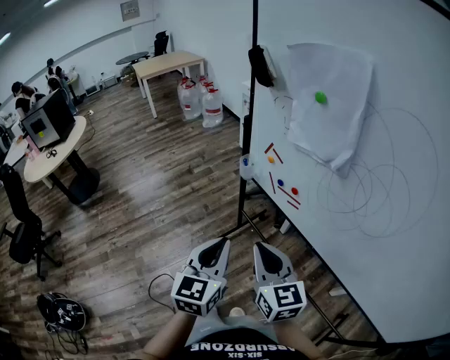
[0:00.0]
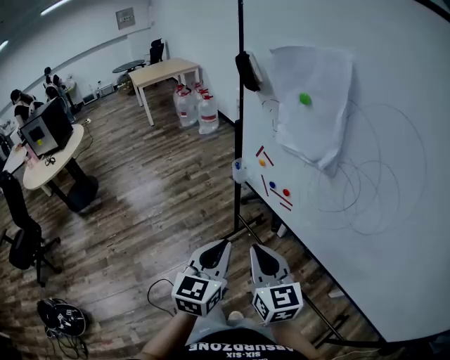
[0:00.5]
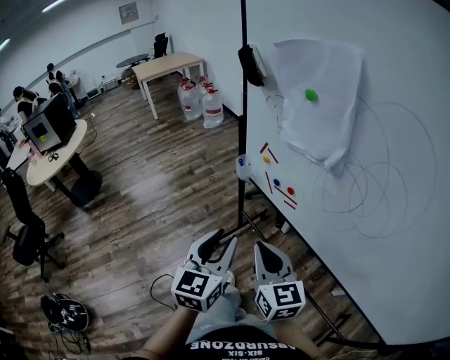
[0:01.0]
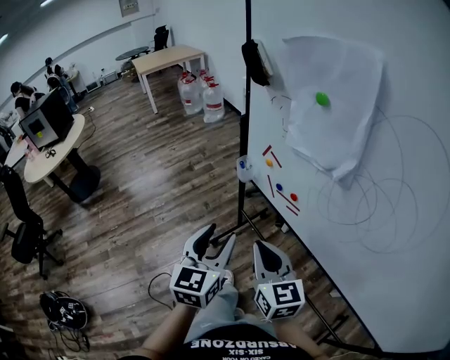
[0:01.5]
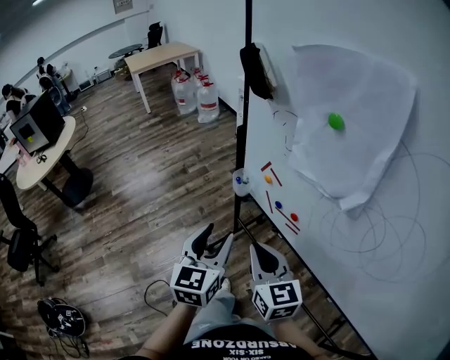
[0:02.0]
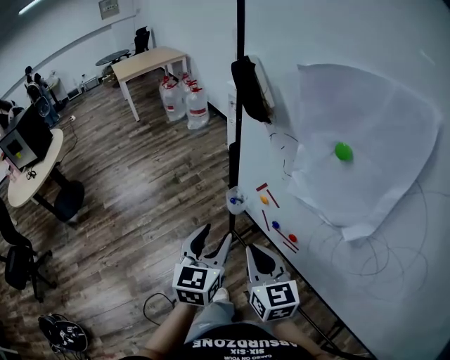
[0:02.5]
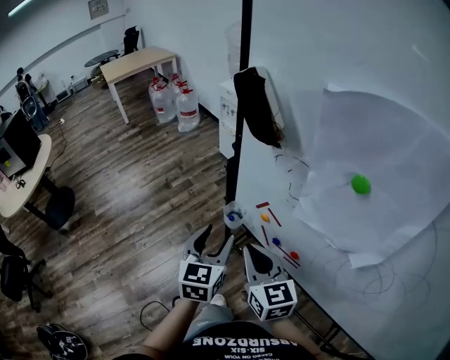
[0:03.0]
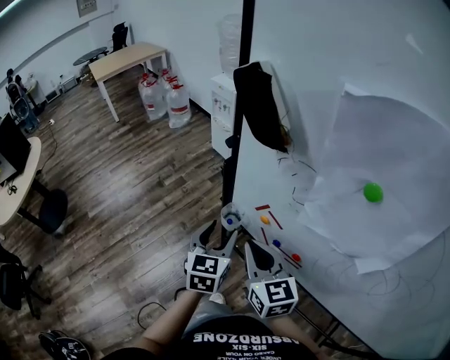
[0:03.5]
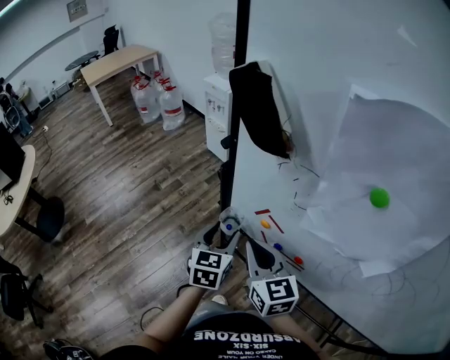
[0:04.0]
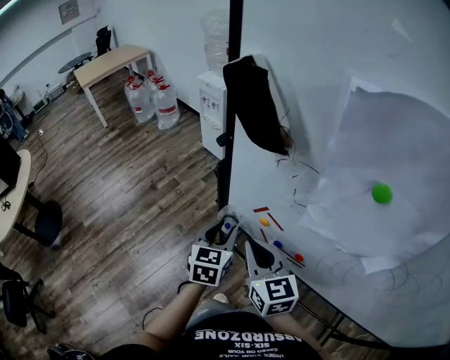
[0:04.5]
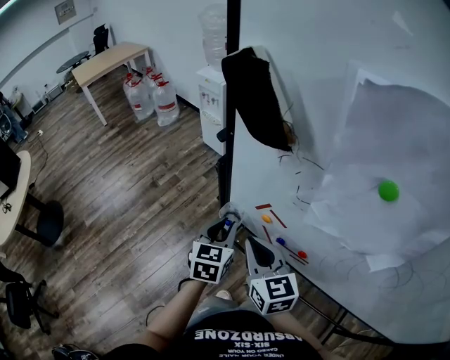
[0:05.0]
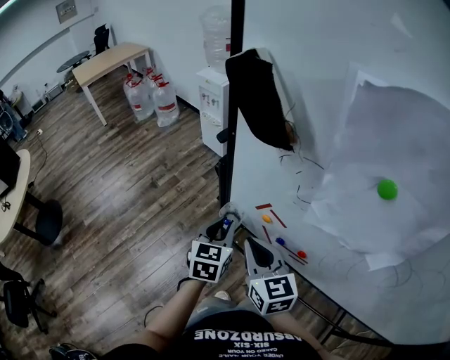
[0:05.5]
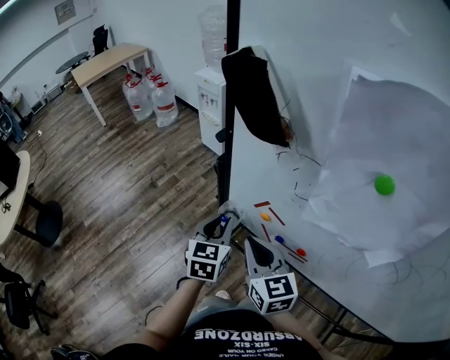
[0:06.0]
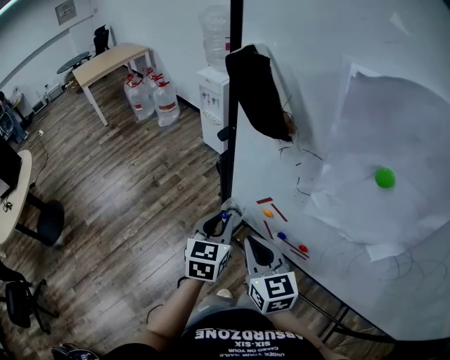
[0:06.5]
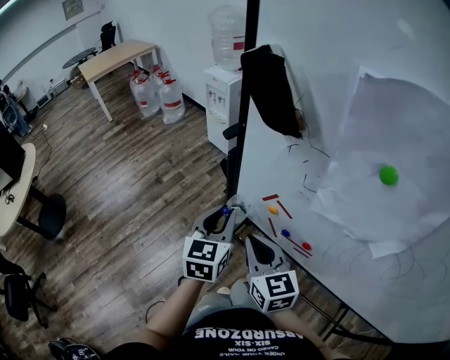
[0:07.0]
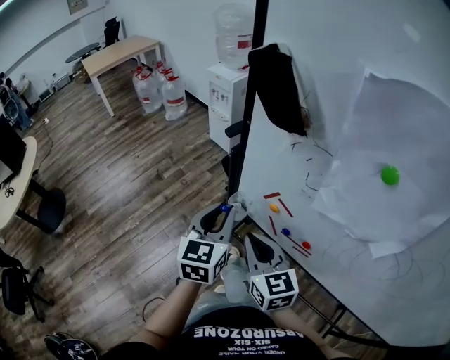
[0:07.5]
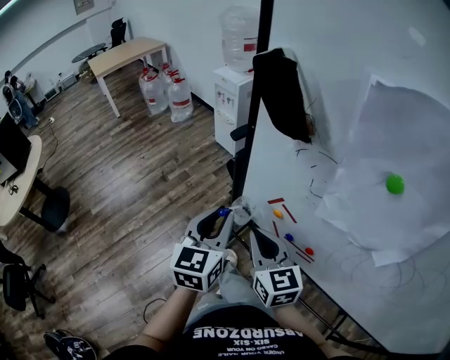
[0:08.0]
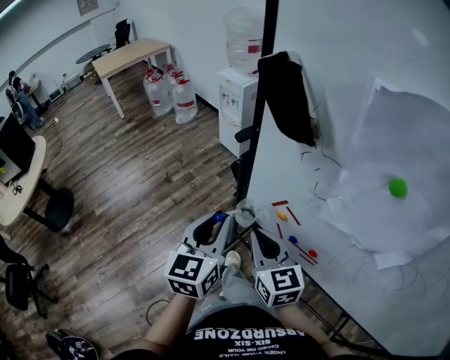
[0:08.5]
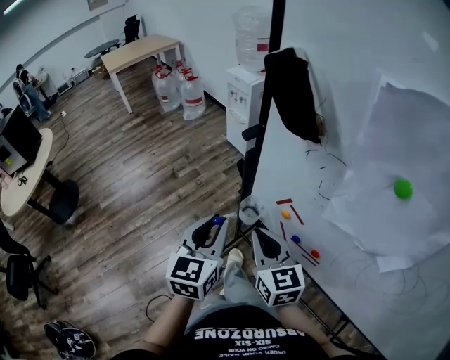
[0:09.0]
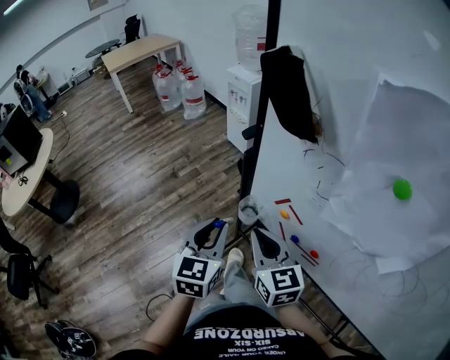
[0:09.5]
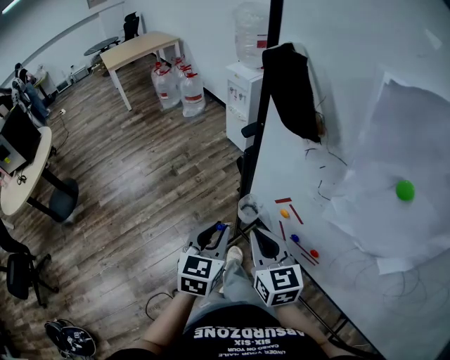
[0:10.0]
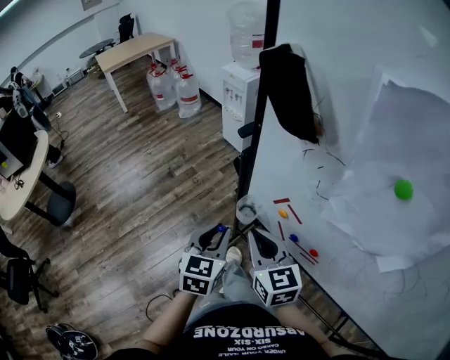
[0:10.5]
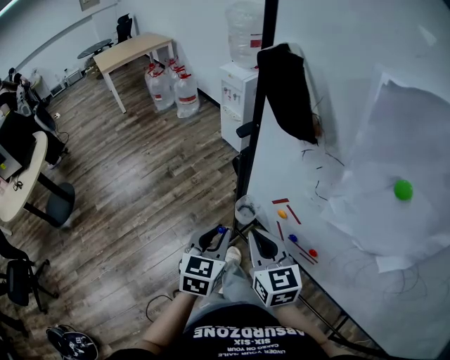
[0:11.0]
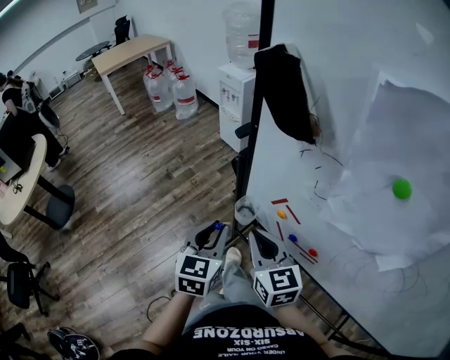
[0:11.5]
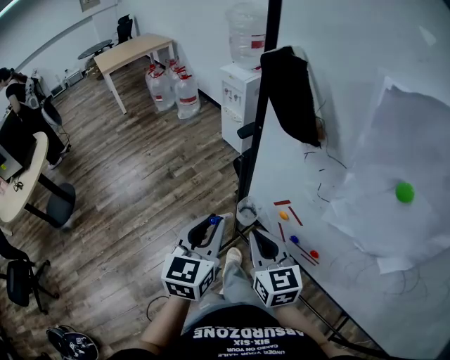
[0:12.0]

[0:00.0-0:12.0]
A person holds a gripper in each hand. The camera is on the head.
0.0 to 2.0 s: Both grippers travel together forward, about 15 cm. The left gripper opens.
2.0 to 4.0 s: The right gripper travels forward by approximately 20 cm, while the left gripper heads forward and downward, covering about 25 cm.
4.0 to 6.0 s: The left gripper closes up.
6.0 to 8.0 s: The left gripper moves upward, approximately 10 cm.
8.0 to 10.0 s: The left gripper shifts approximately 5 cm downward.
10.0 to 12.0 s: The left gripper is displaced upward by some 5 cm.

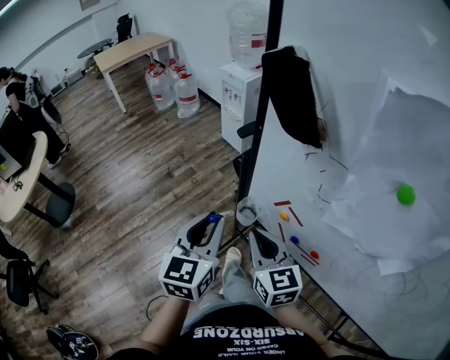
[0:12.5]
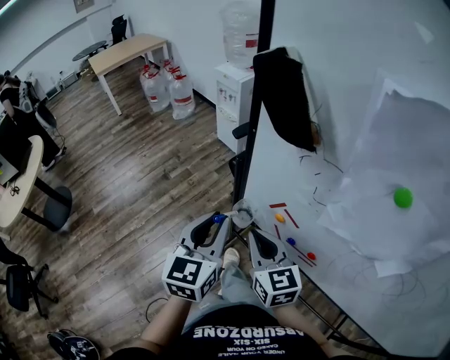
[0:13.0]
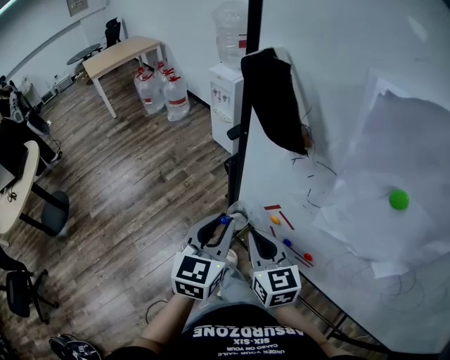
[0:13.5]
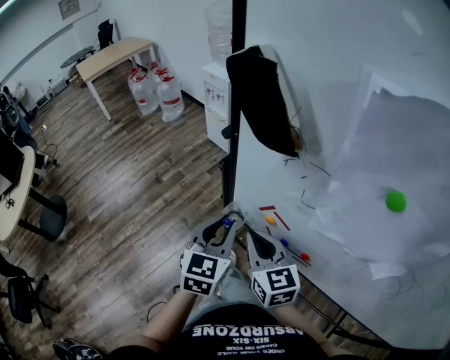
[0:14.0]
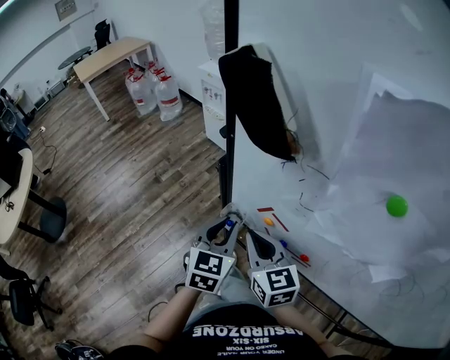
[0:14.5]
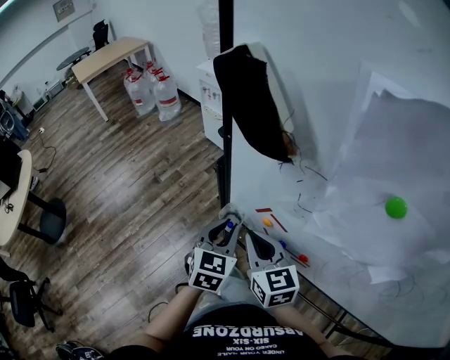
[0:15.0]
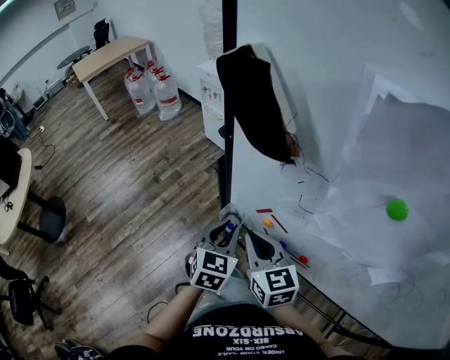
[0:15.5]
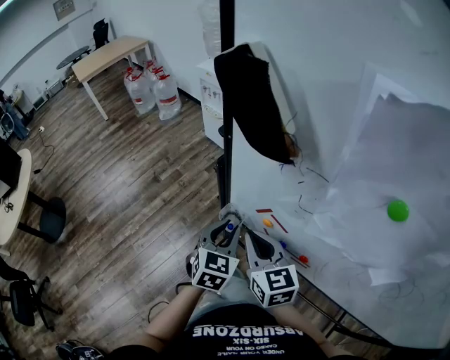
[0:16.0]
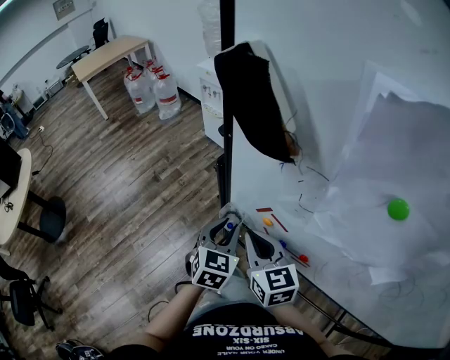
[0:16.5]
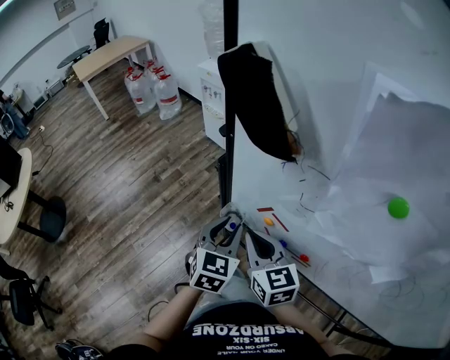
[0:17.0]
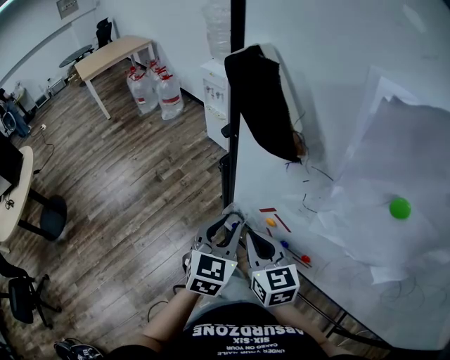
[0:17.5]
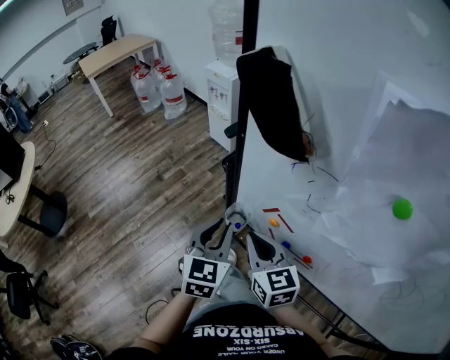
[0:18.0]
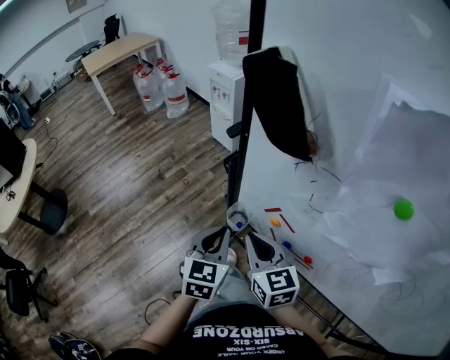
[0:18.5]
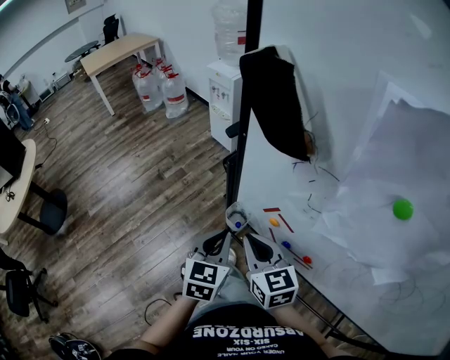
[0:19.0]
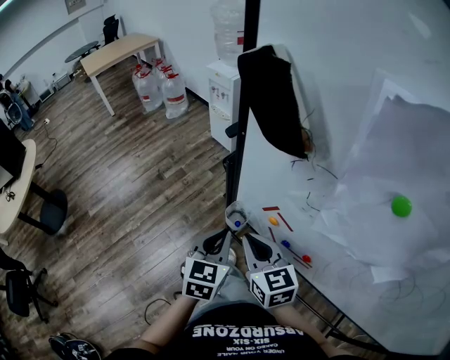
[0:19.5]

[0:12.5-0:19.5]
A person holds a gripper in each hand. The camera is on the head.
12.5 to 14.5 s: The left gripper shifts approximately 10 cm to the right and downward.
14.5 to 16.0 s: The grippers move only a little.
16.0 to 17.5 s: The left gripper is displaced upward by some 5 cm.
17.5 to 19.5 s: The left gripper closes.

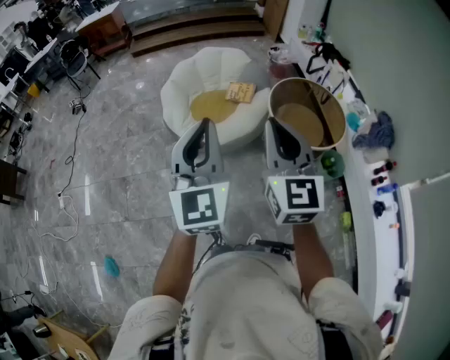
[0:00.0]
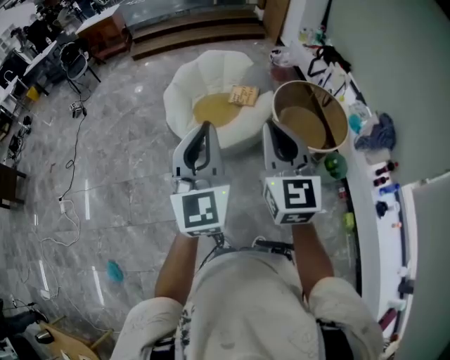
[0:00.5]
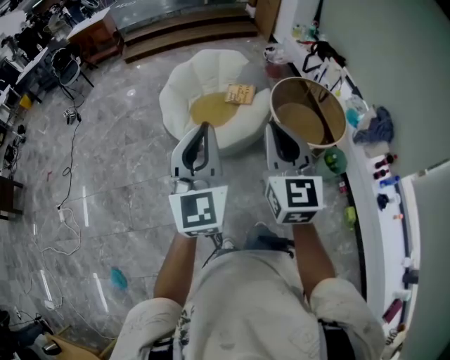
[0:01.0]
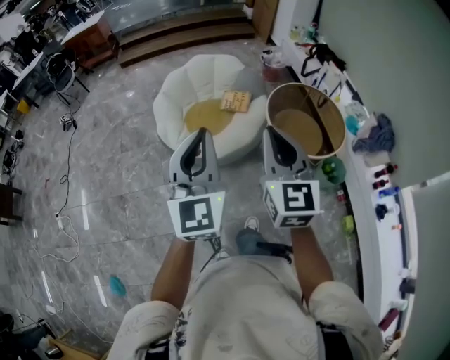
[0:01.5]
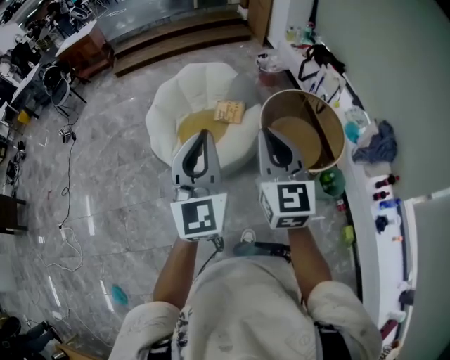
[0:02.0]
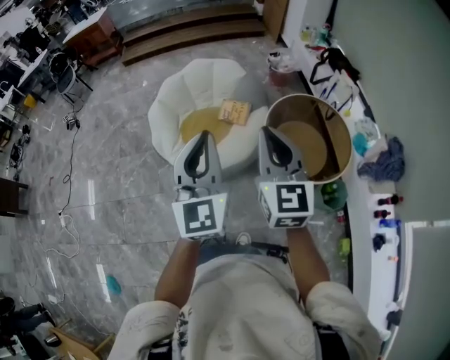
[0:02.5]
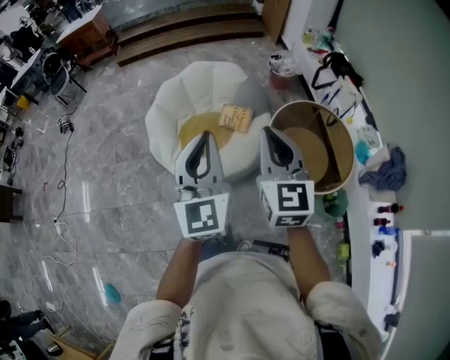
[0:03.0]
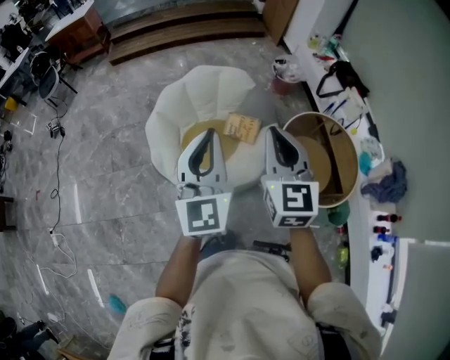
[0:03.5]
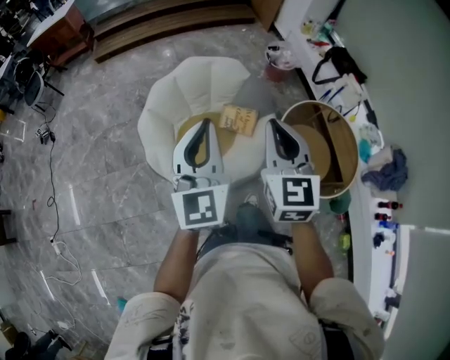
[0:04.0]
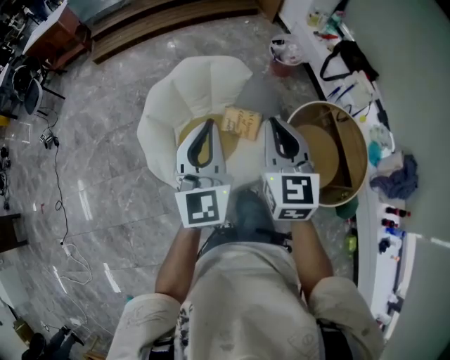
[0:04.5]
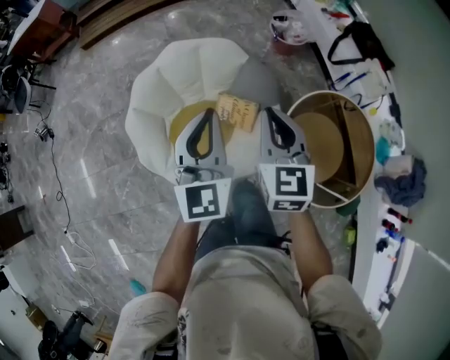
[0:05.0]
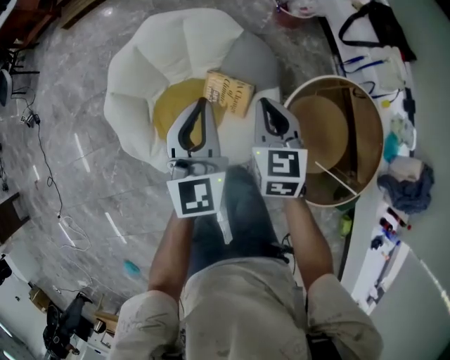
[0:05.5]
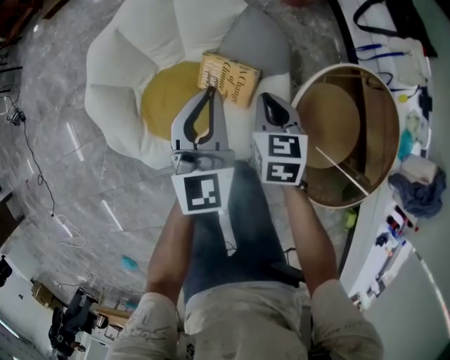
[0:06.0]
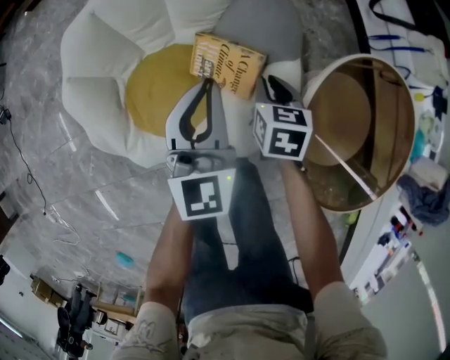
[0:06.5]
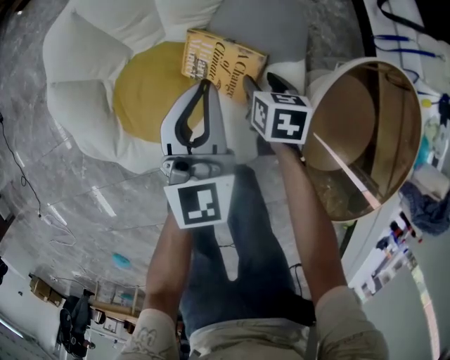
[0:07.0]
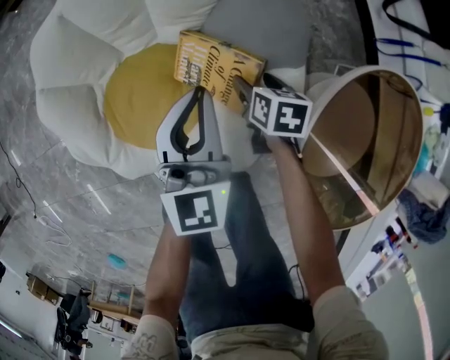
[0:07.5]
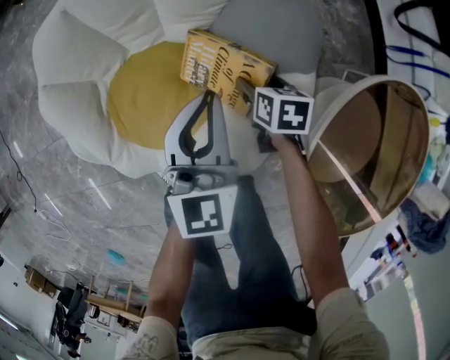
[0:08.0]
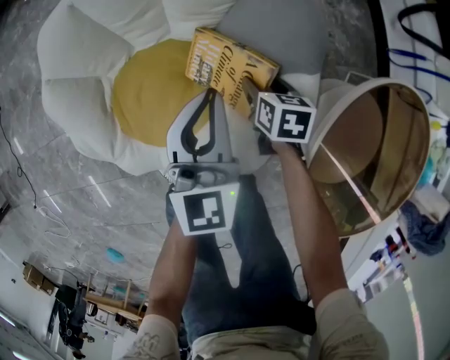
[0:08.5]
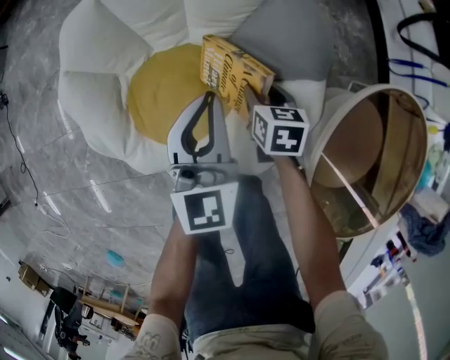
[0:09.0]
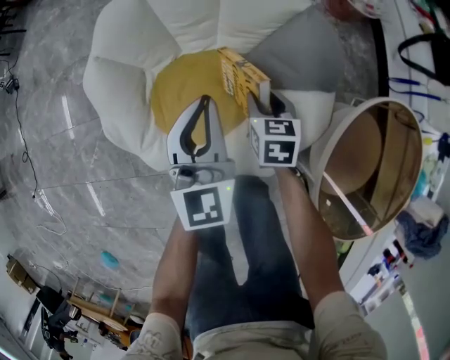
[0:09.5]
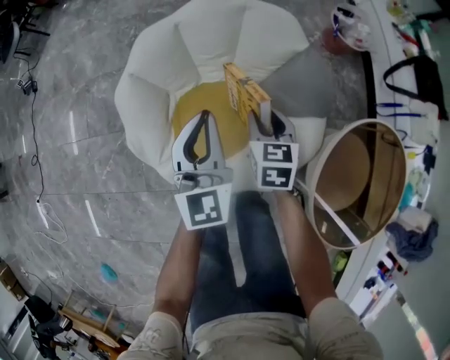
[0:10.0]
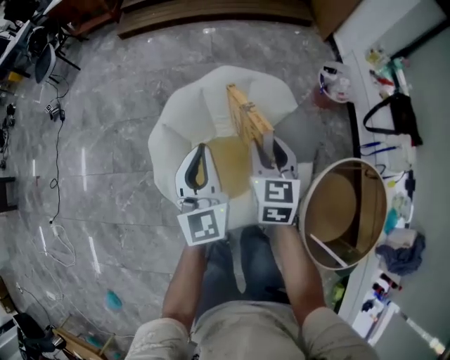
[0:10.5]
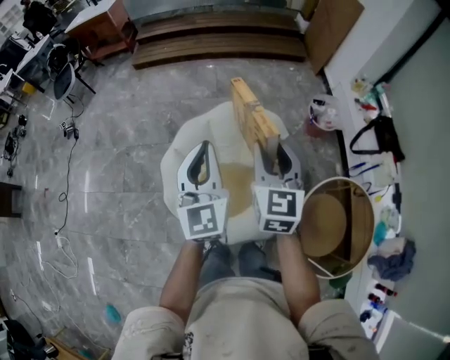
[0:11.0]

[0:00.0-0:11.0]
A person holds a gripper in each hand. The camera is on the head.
0.0 to 2.0 s: Both grippers travel together forward, about 20 cm.
2.0 to 3.5 s: Both grippers move forward, about 25 cm.
3.5 to 5.5 s: The left gripper goes about 40 cm forward, downward and to the right; the right gripper travels downward and forward by approximately 40 cm, and turns by some 30 degrees.
5.5 to 7.5 s: The grippers both shift downward by some 35 cm. The right gripper turns by about 40 degrees, and opens.
7.5 to 9.0 s: The right gripper heads to the left, covering roughly 5 cm, and closes.
9.0 to 11.0 s: The right gripper moves upward, some 60 cm, and angles its fingers upward, by some 40 degrees; the left gripper travels upward and to the left by about 50 cm, and turns by about 20 degrees.
